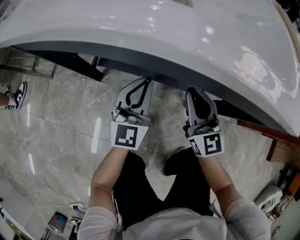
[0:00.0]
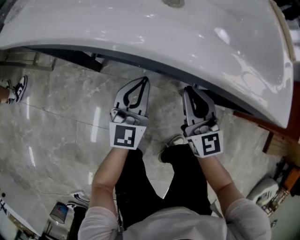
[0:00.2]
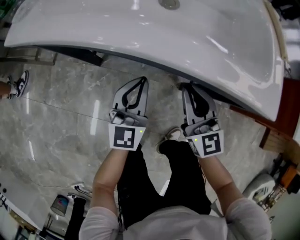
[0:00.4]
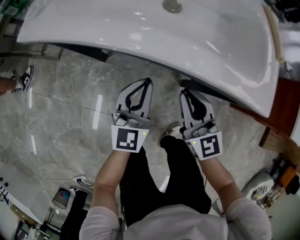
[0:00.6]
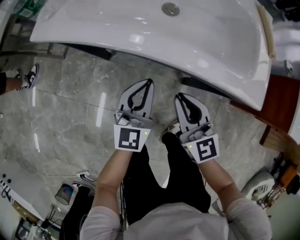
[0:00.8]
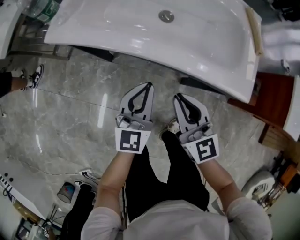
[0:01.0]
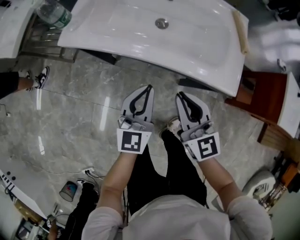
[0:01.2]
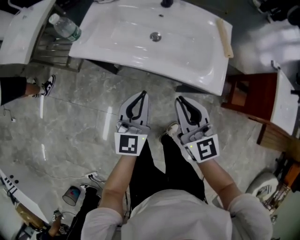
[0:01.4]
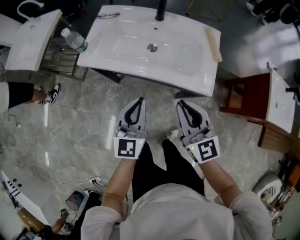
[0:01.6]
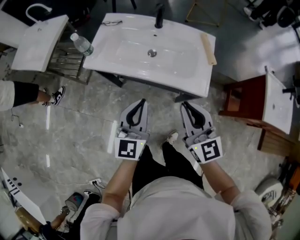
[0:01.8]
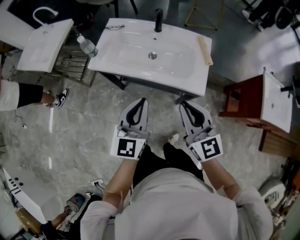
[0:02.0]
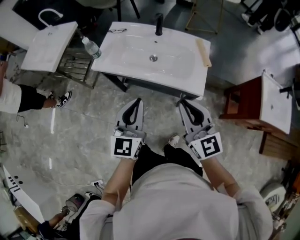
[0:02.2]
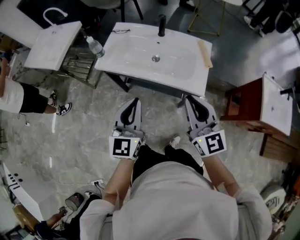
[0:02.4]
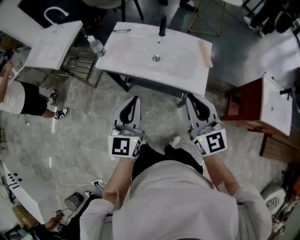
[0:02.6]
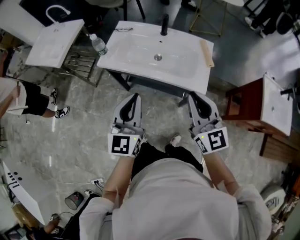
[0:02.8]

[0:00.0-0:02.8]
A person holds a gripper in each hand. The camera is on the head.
0:00.0 to 0:01.4: The grippers both shift upward by some 35 cm.
0:01.4 to 0:02.8: Both grippers travel together upward, about 20 cm.

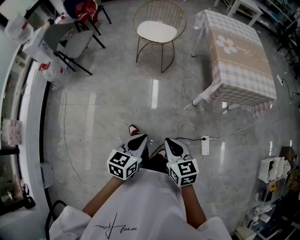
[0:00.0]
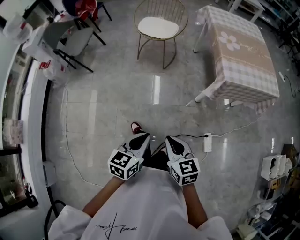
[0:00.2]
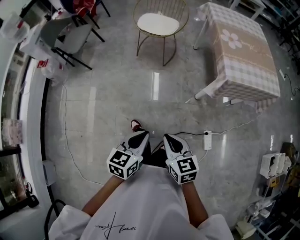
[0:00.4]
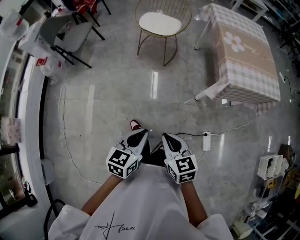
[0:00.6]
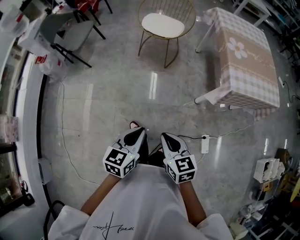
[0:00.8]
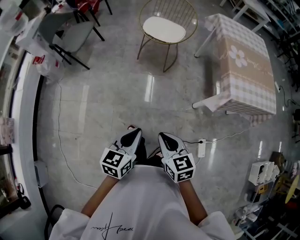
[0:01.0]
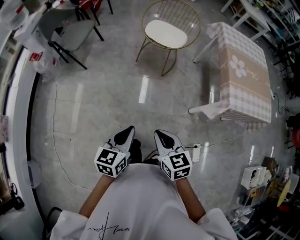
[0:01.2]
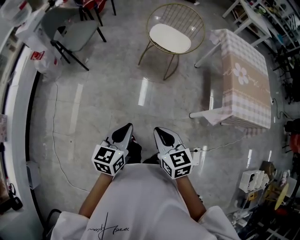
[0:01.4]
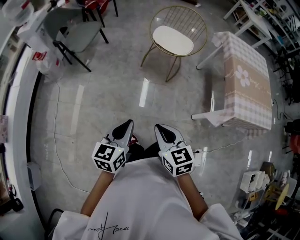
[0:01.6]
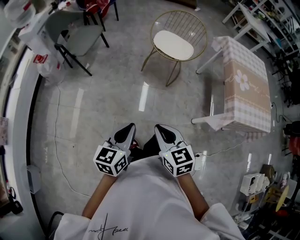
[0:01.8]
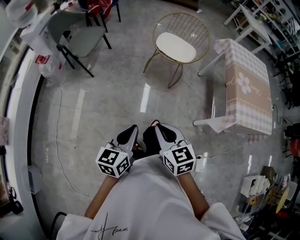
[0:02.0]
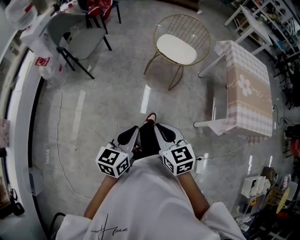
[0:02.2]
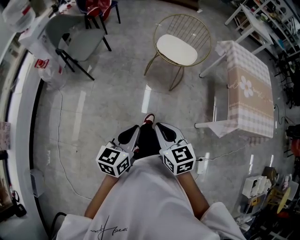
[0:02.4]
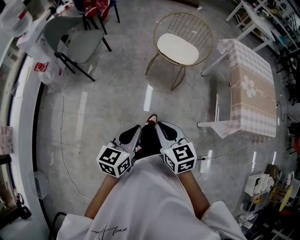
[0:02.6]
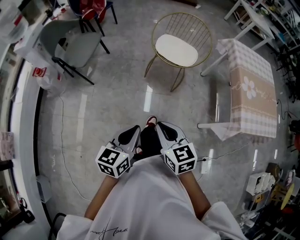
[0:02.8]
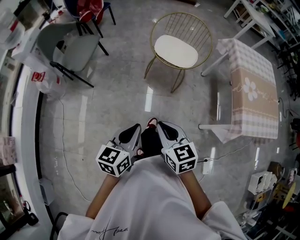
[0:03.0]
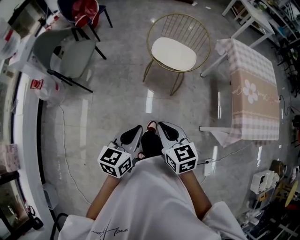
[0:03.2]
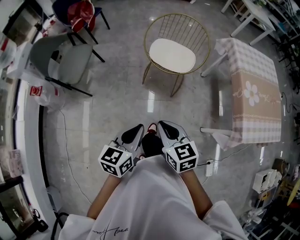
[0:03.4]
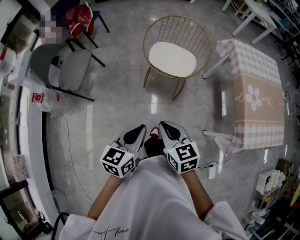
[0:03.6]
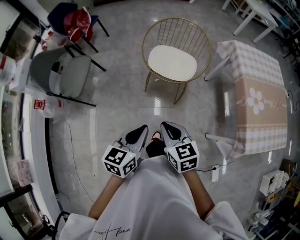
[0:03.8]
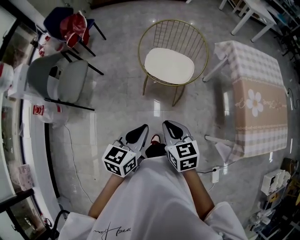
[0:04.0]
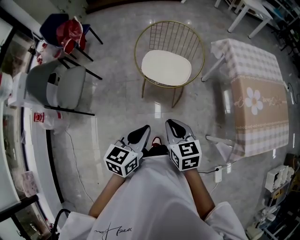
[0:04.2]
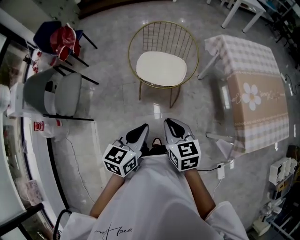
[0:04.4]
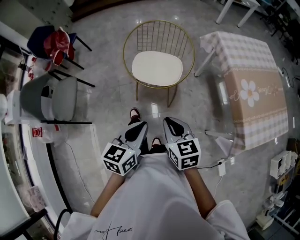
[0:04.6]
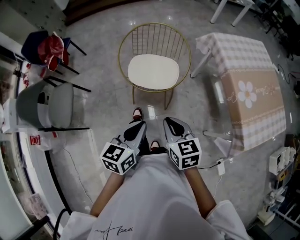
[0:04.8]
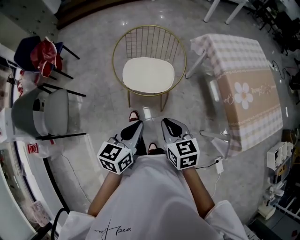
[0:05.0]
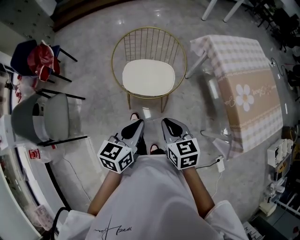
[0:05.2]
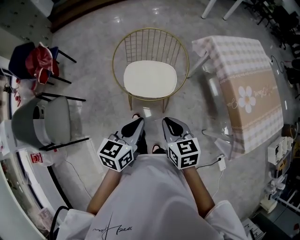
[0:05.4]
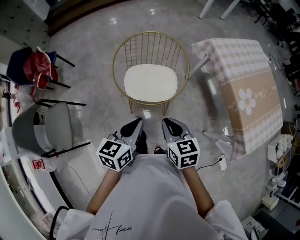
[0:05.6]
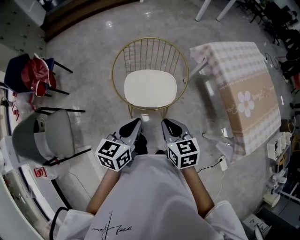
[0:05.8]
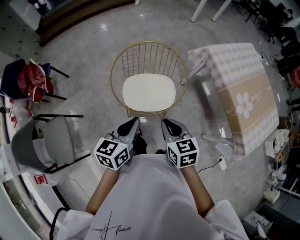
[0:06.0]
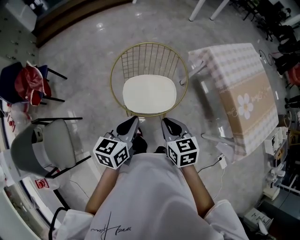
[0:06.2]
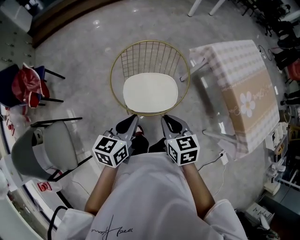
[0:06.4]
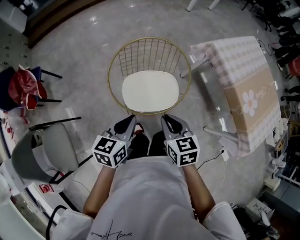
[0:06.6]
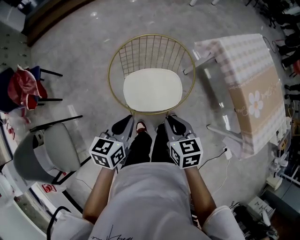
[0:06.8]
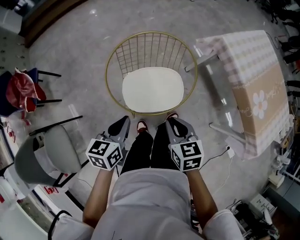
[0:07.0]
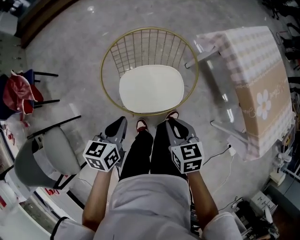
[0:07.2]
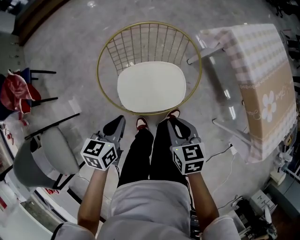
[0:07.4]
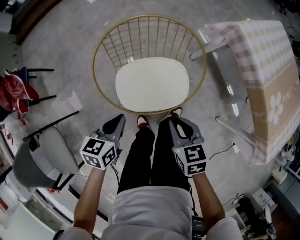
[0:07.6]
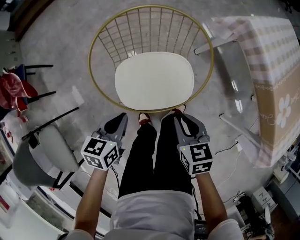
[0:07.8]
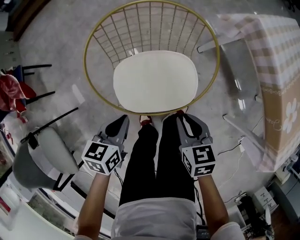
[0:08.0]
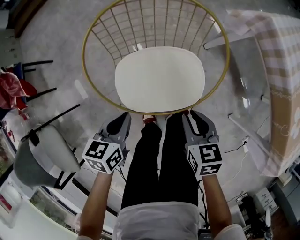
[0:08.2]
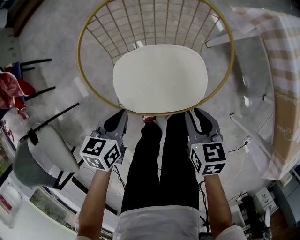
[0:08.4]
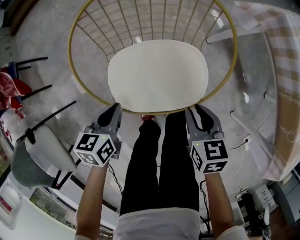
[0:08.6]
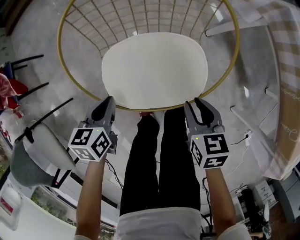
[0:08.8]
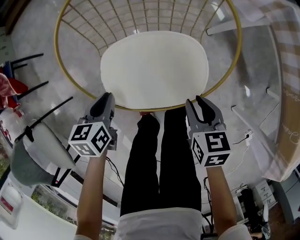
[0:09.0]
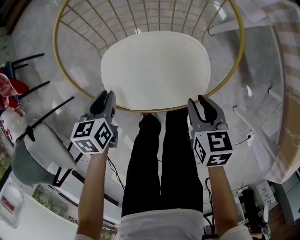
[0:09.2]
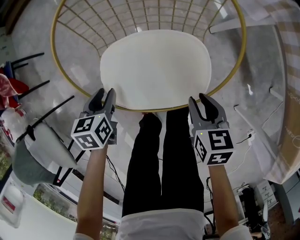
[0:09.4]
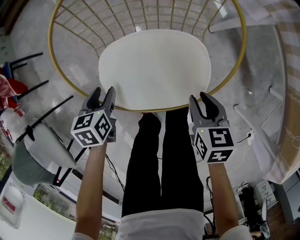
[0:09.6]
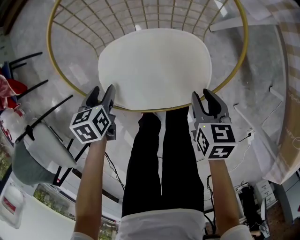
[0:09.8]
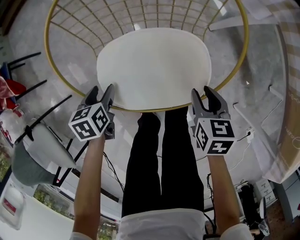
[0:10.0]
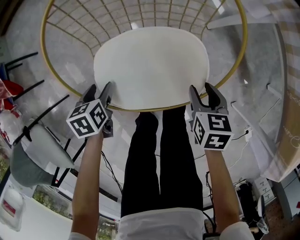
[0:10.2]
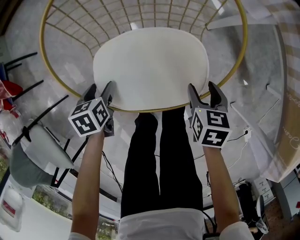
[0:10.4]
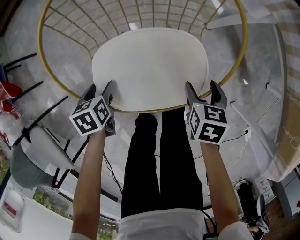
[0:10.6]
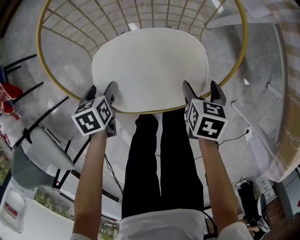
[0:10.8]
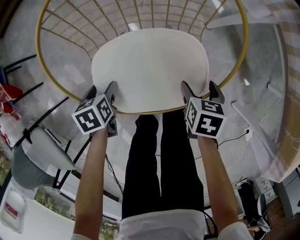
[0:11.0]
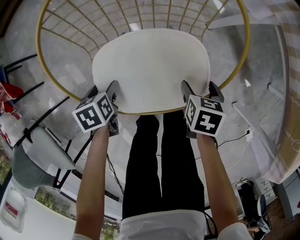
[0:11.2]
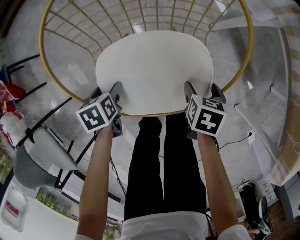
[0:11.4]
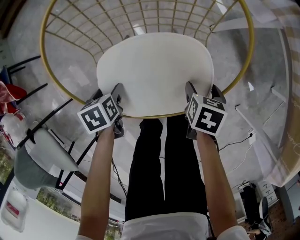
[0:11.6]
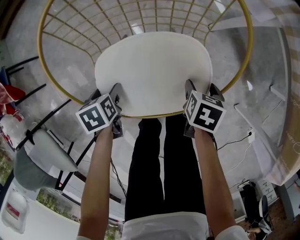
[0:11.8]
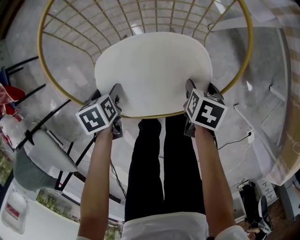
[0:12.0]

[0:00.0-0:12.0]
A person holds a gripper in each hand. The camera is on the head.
0:00.0 to 0:01.6: The grippers both shift forward and to the left by roughly 30 cm.
0:01.6 to 0:03.0: Both grippers move forward, roughly 15 cm.
0:03.0 to 0:04.4: Both grippers move forward and to the right, approximately 30 cm.
0:04.4 to 0:06.0: The right gripper travels forward by roughly 20 cm. Meanwhile the left gripper travels forward and to the left by approximately 30 cm.
0:06.0 to 0:07.6: The two grippers go approximately 25 cm downward and forward. The left gripper rotates about 20 degrees.
0:07.6 to 0:09.0: Both grippers travel together downward, approximately 15 cm.
0:09.0 to 0:10.4: The grippers both shift downward by approximately 5 cm. The left gripper opens. The right gripper opens up.
0:10.4 to 0:12.0: The right gripper travels downward by about 5 cm, and turns by roughly 20 degrees.

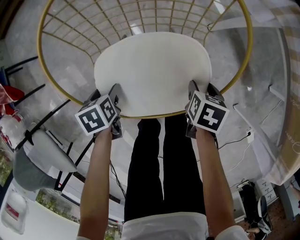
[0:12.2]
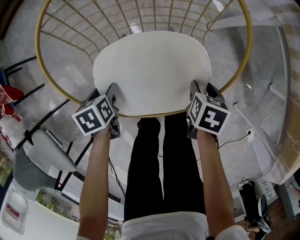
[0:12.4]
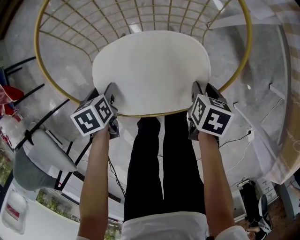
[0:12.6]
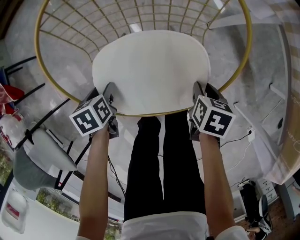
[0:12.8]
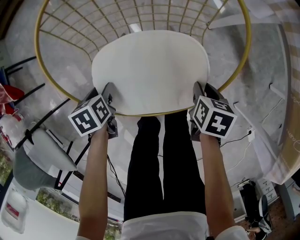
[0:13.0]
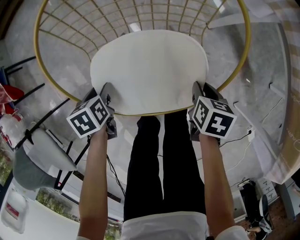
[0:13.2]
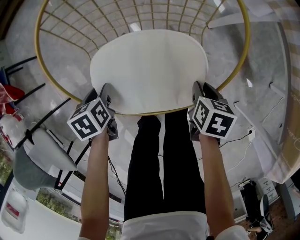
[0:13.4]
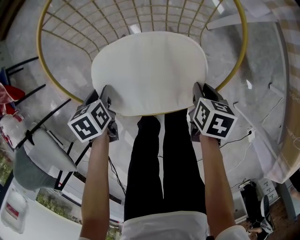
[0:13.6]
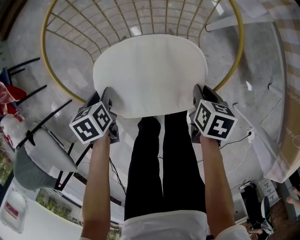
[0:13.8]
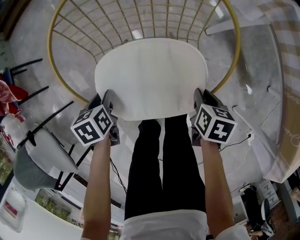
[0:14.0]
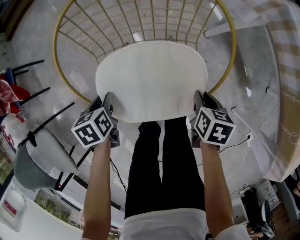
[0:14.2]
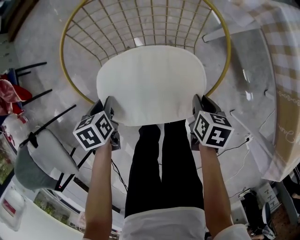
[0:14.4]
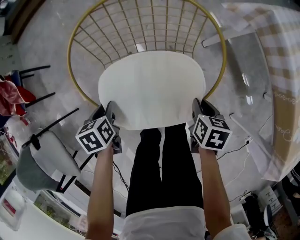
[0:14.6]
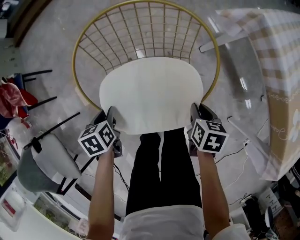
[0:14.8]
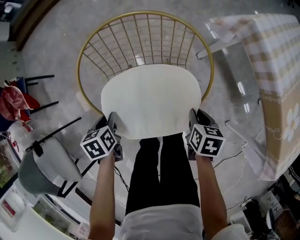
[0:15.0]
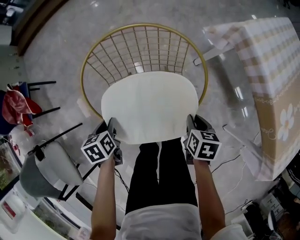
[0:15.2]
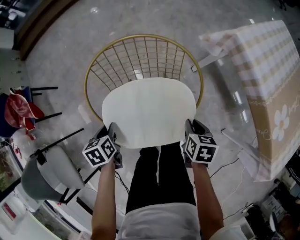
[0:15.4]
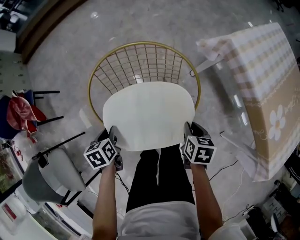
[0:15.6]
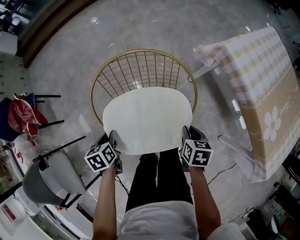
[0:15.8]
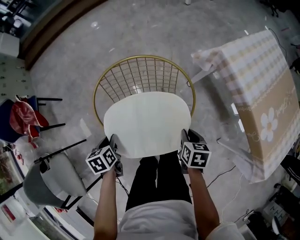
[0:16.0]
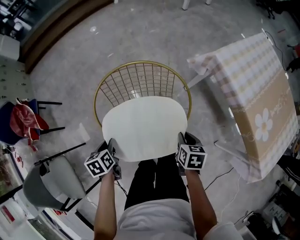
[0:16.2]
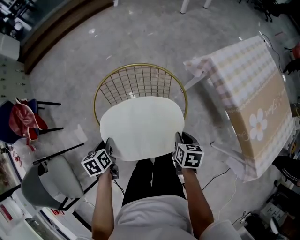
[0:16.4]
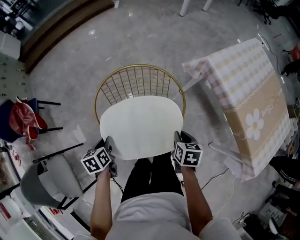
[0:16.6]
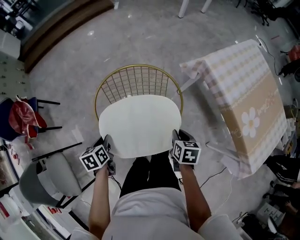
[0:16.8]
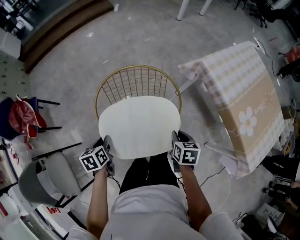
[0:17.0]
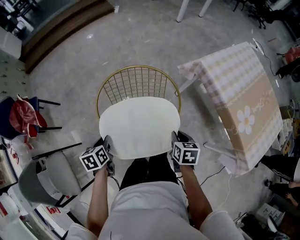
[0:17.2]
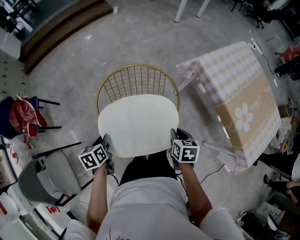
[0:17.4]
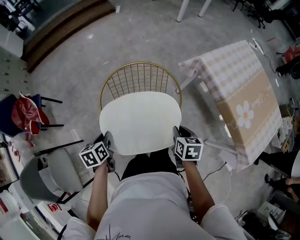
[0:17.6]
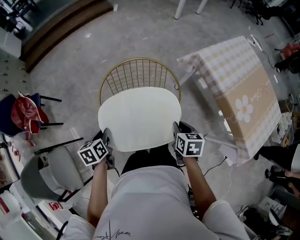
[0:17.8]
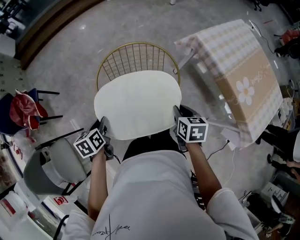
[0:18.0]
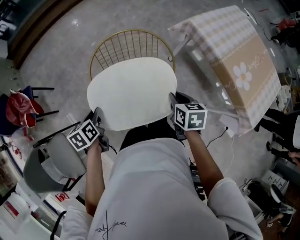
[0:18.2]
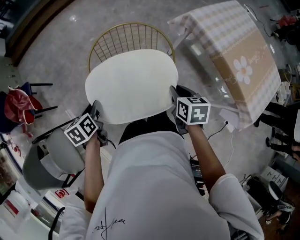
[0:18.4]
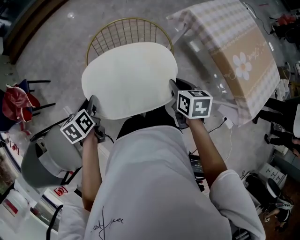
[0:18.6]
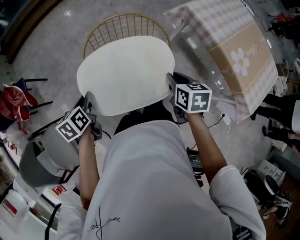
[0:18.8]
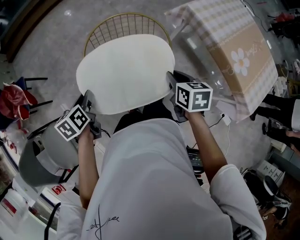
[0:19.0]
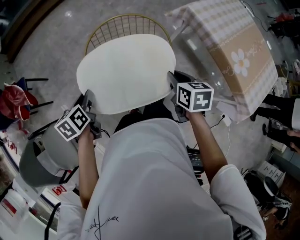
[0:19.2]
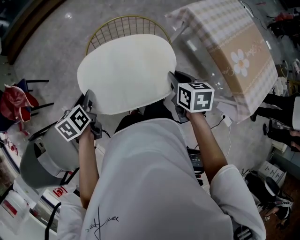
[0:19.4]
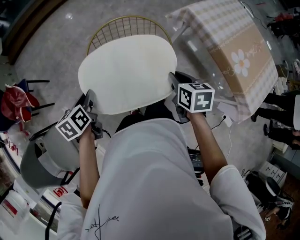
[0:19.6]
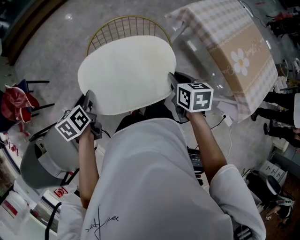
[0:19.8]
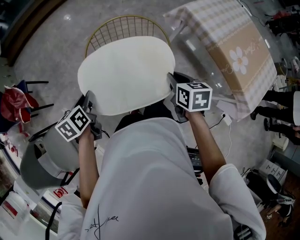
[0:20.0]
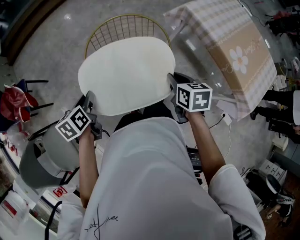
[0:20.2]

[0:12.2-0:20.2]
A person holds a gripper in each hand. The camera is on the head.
0:12.2 to 0:13.8: The right gripper closes up, while the left gripper closes.
0:13.8 to 0:15.4: Both grippers travel together upward, approximately 15 cm.
0:15.4 to 0:17.0: The two grippers go about 15 cm upward.
0:17.0 to 0:18.6: The right gripper travels upward and backward by roughly 10 cm. Meanwhile the left gripper is displaced upward by about 5 cm.
0:18.6 to 0:20.2: The grippers make only small movements.

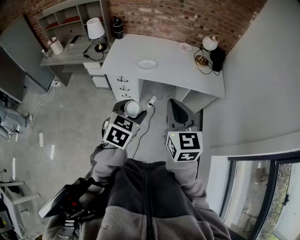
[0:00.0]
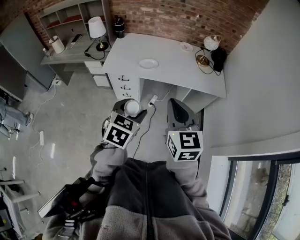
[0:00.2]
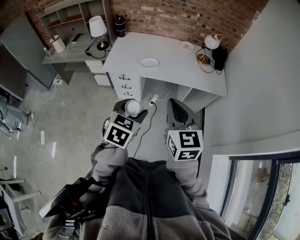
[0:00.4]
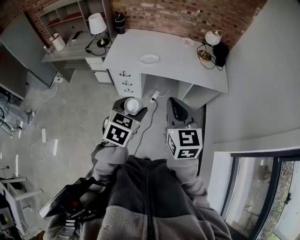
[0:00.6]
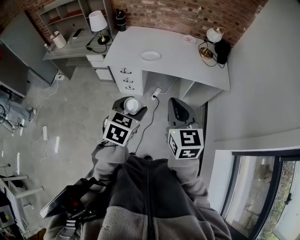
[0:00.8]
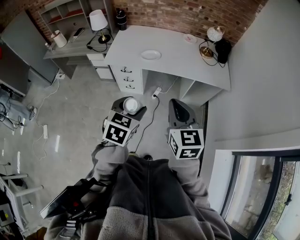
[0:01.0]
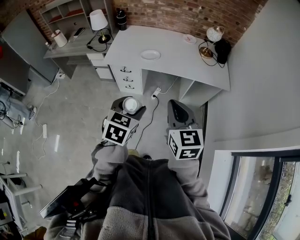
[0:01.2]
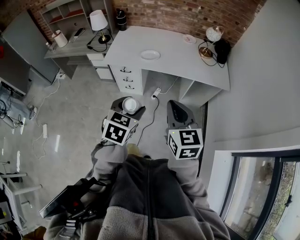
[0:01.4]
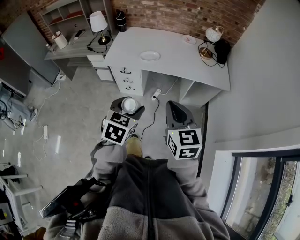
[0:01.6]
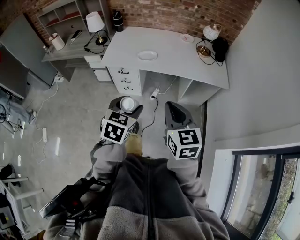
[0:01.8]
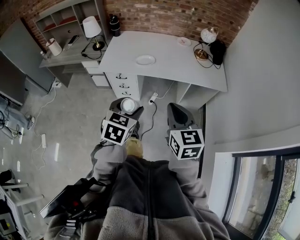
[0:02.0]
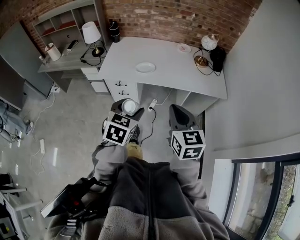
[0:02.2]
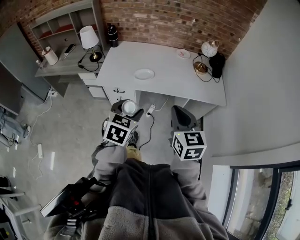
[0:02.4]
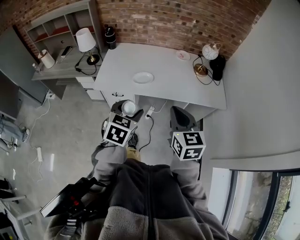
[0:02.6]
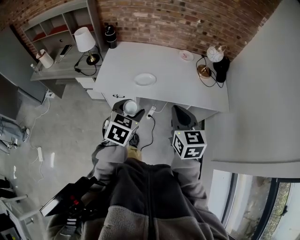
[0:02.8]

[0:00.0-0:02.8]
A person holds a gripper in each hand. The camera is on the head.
0:00.0 to 0:01.4: The right gripper shifts about 5 cm downward.
0:01.4 to 0:02.8: Both grippers move forward, about 20 cm.
